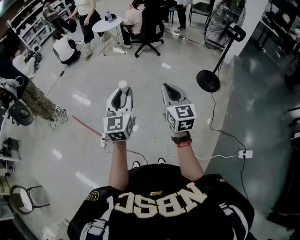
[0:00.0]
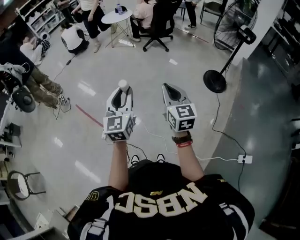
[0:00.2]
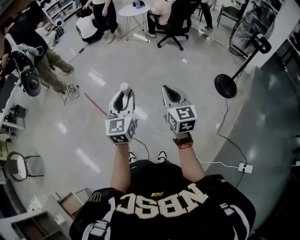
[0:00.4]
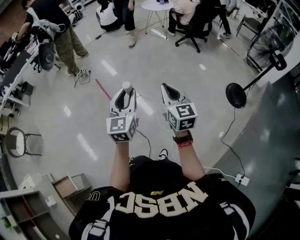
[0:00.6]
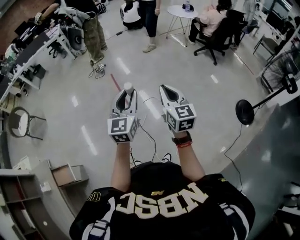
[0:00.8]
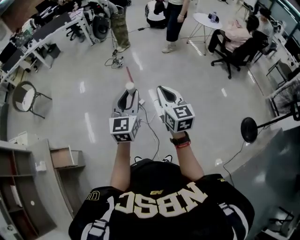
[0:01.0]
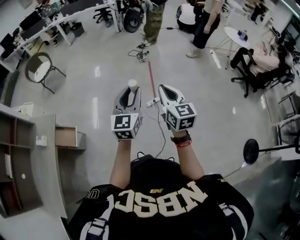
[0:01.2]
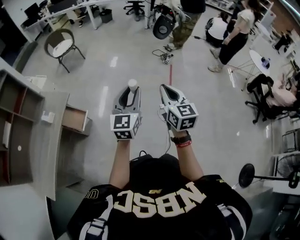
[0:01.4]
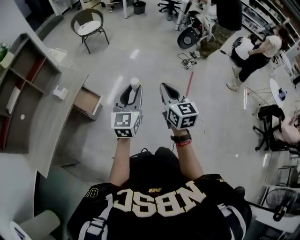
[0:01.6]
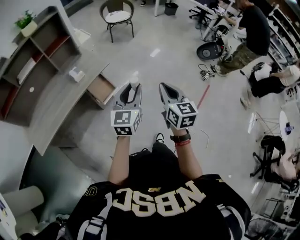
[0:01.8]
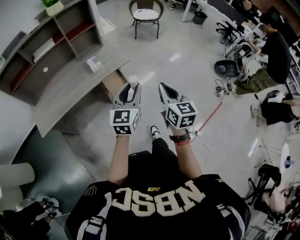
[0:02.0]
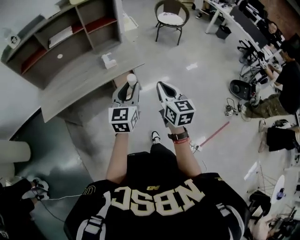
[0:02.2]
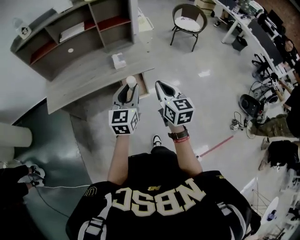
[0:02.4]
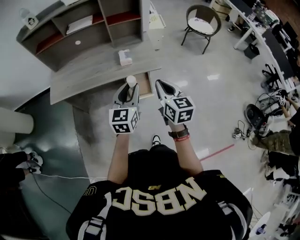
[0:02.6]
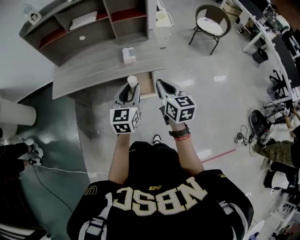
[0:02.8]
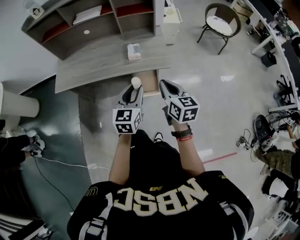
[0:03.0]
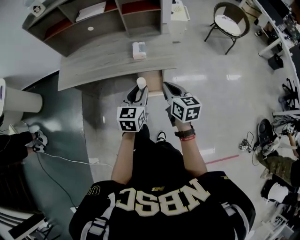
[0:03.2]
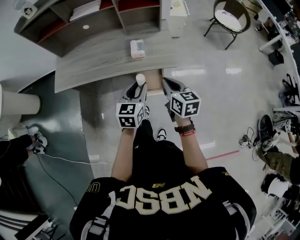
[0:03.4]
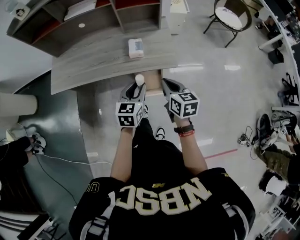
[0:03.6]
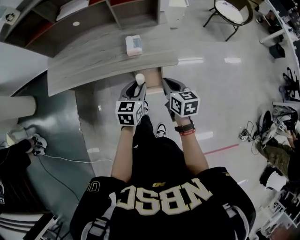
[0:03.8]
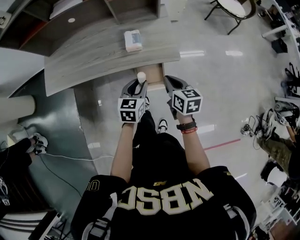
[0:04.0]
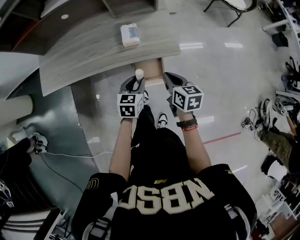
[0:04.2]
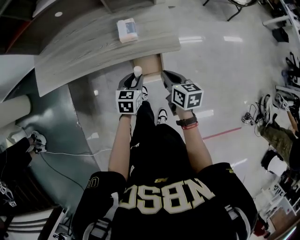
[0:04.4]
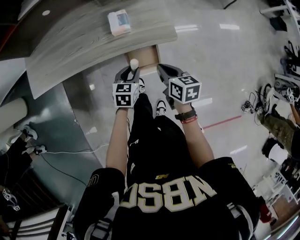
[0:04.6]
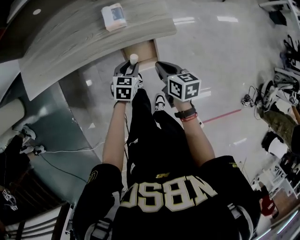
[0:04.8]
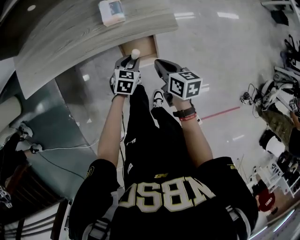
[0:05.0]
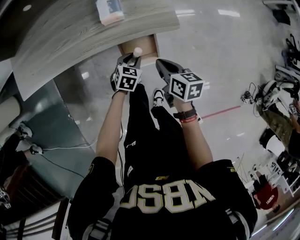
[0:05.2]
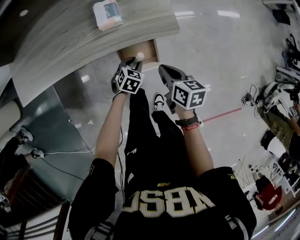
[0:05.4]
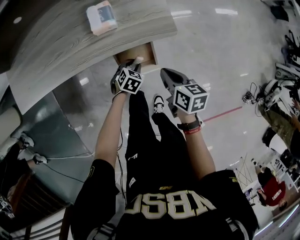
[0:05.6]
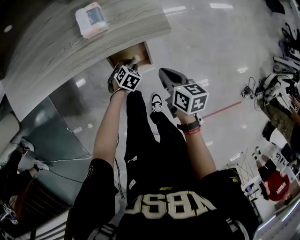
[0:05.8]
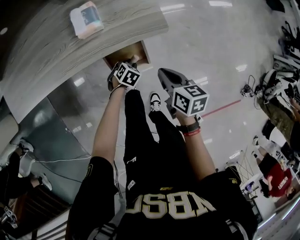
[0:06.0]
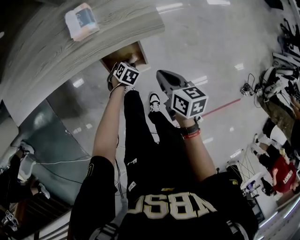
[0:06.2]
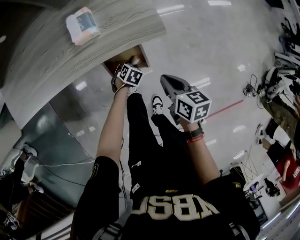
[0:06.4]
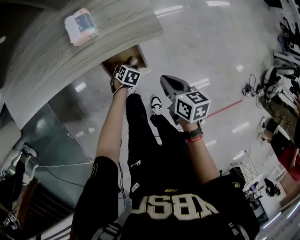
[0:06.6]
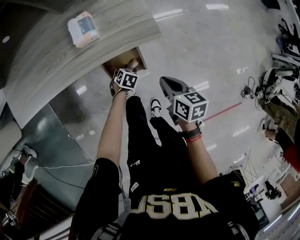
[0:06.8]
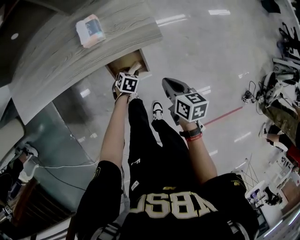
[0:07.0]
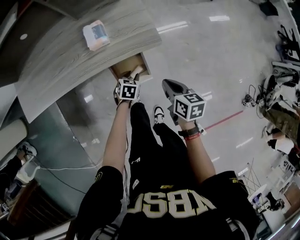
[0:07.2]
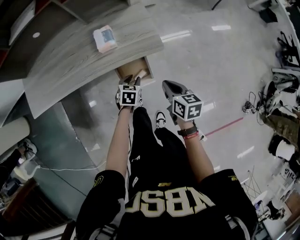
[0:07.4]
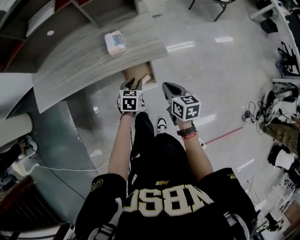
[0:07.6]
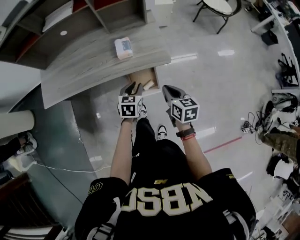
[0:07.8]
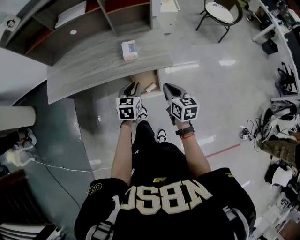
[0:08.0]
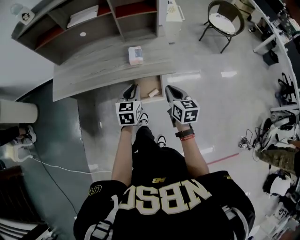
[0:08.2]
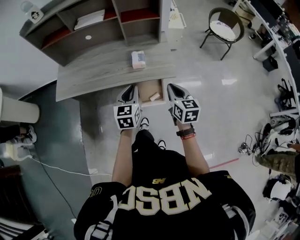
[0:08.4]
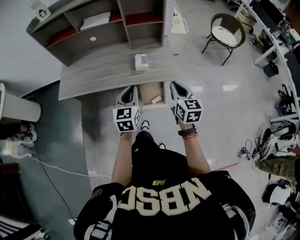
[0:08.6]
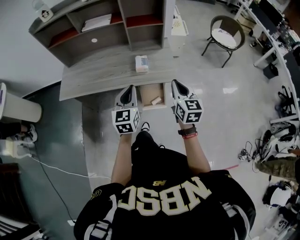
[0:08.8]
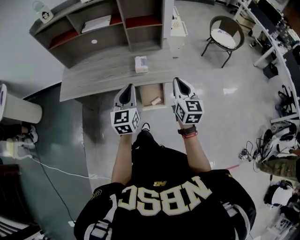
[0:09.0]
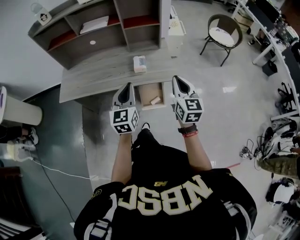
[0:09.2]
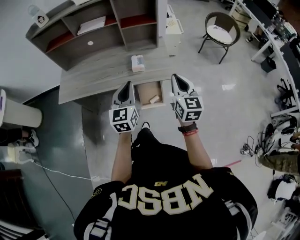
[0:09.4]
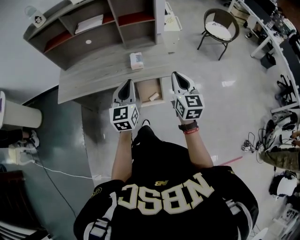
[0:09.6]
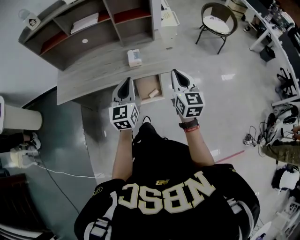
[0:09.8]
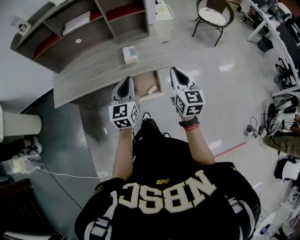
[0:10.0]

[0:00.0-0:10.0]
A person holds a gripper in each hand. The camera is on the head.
0:00.0 to 0:01.4: Both grippers are carried roughly 60 cm. The left gripper swivels approximately 60 degrees. Meanwhile the right gripper changes its angle by approximately 70 degrees.
0:01.4 to 0:02.8: Both grippers are carried about 50 cm. The left gripper changes its angle by about 70 degrees. Meanwhile the right gripper changes its angle by roughly 80 degrees.
0:02.8 to 0:04.2: The two grippers go about 20 cm downward and forward. The right gripper swivels about 20 degrees. The left gripper turns by some 30 degrees.
0:04.2 to 0:05.8: The left gripper shifts some 30 cm downward, and rotates approximately 40 degrees. Meanwhile the right gripper travels downward by about 15 cm.
0:05.8 to 0:07.2: The right gripper ends up some 5 cm from where it was, while the left gripper moves upward, roughly 5 cm.
0:07.2 to 0:08.6: The right gripper shifts about 25 cm upward, and changes its angle by some 40 degrees. Meanwhile the left gripper is displaced upward by about 40 cm, points its fingers about 40 degrees further upward, and closes its fingers.

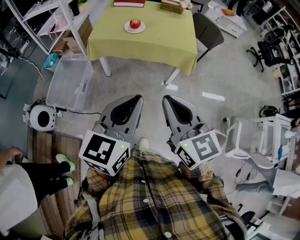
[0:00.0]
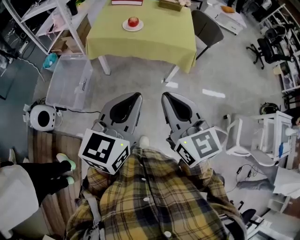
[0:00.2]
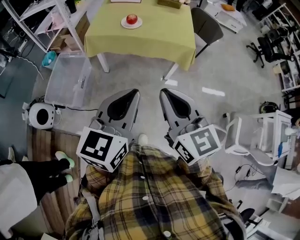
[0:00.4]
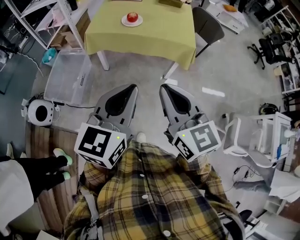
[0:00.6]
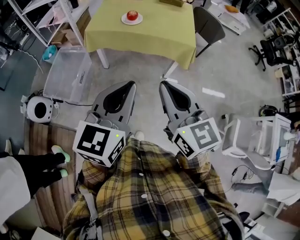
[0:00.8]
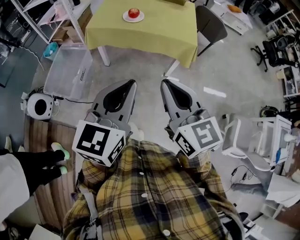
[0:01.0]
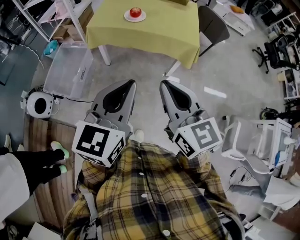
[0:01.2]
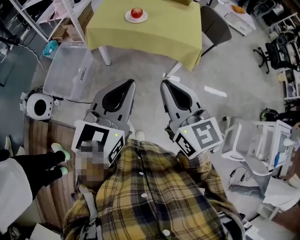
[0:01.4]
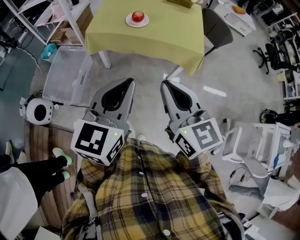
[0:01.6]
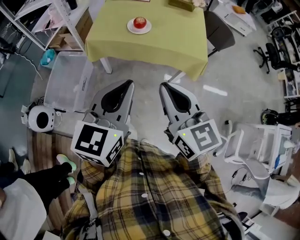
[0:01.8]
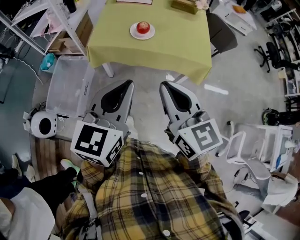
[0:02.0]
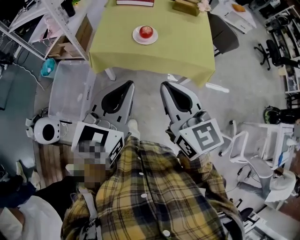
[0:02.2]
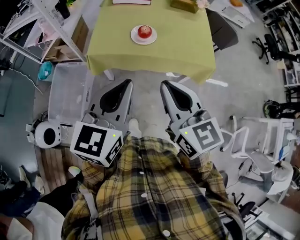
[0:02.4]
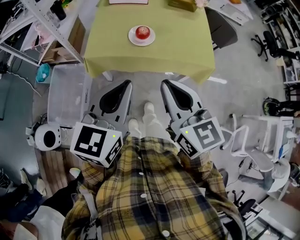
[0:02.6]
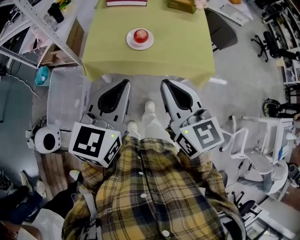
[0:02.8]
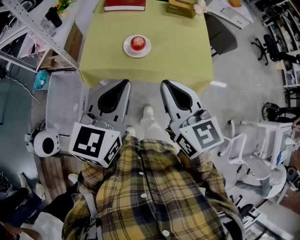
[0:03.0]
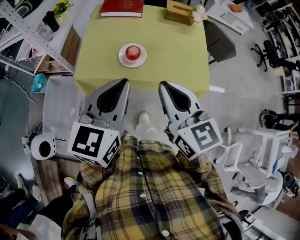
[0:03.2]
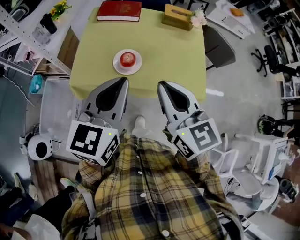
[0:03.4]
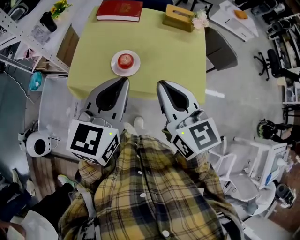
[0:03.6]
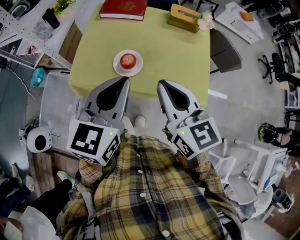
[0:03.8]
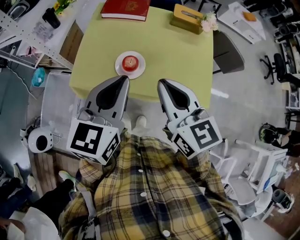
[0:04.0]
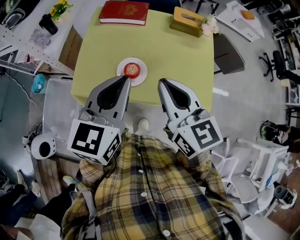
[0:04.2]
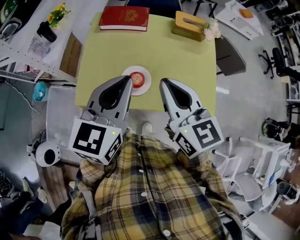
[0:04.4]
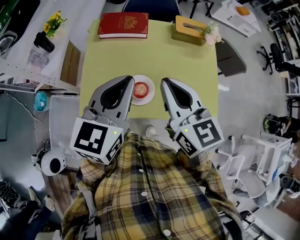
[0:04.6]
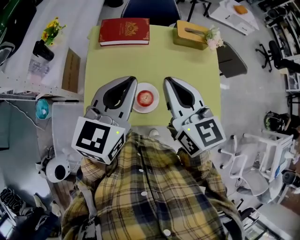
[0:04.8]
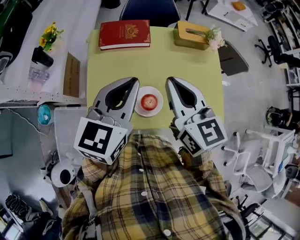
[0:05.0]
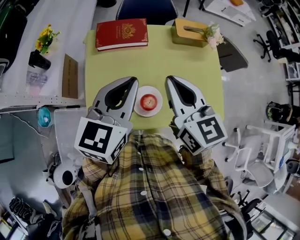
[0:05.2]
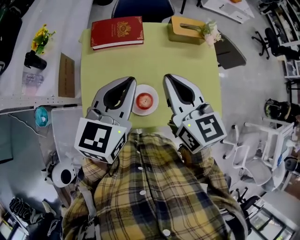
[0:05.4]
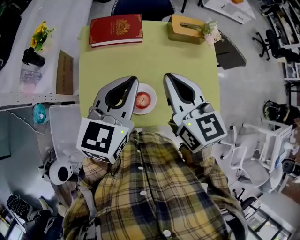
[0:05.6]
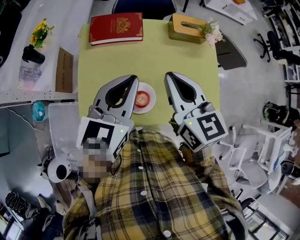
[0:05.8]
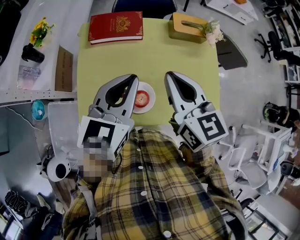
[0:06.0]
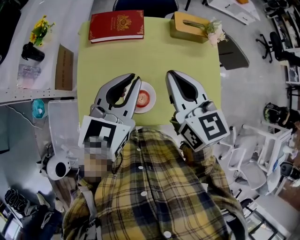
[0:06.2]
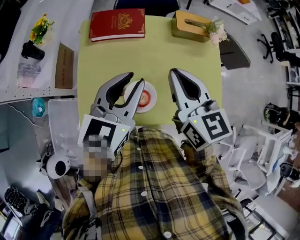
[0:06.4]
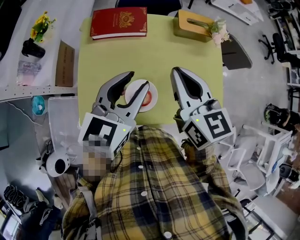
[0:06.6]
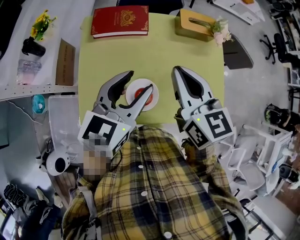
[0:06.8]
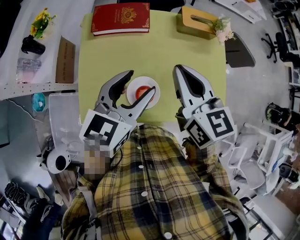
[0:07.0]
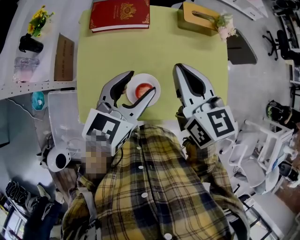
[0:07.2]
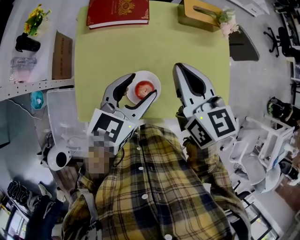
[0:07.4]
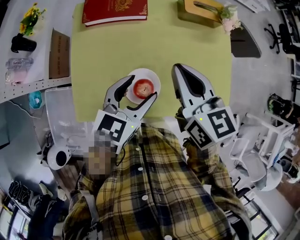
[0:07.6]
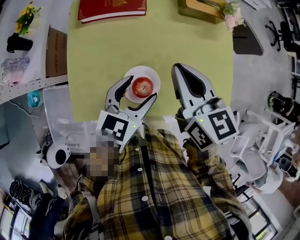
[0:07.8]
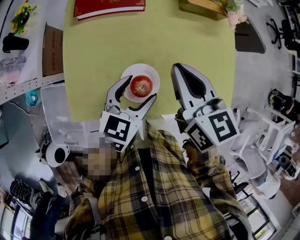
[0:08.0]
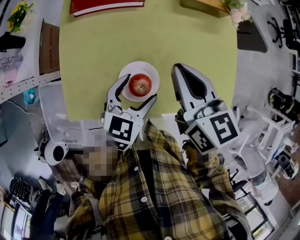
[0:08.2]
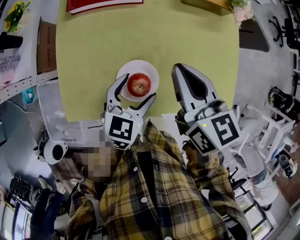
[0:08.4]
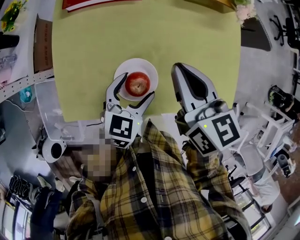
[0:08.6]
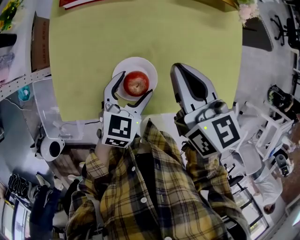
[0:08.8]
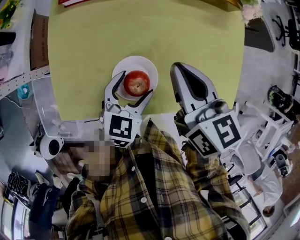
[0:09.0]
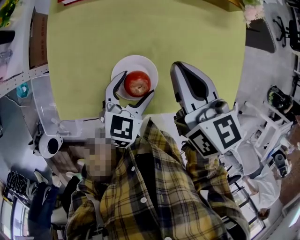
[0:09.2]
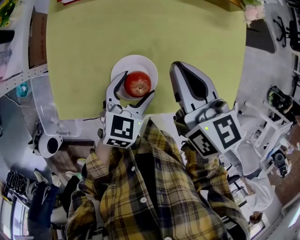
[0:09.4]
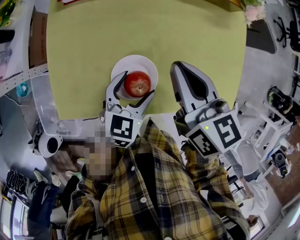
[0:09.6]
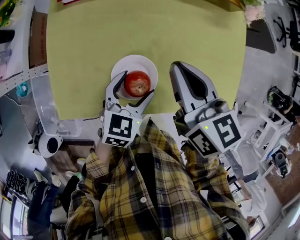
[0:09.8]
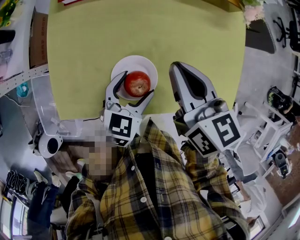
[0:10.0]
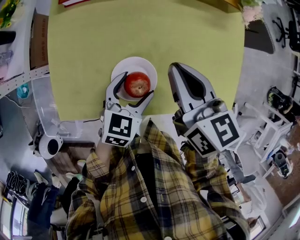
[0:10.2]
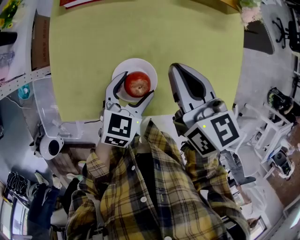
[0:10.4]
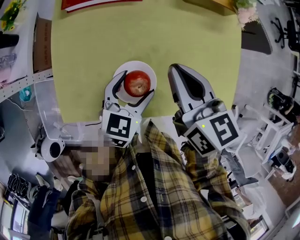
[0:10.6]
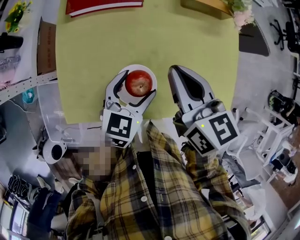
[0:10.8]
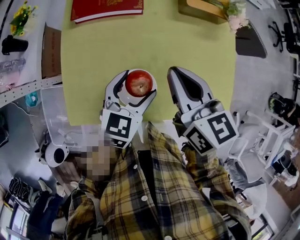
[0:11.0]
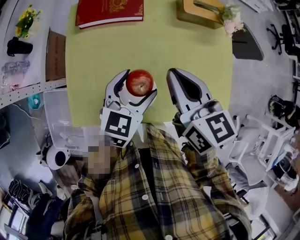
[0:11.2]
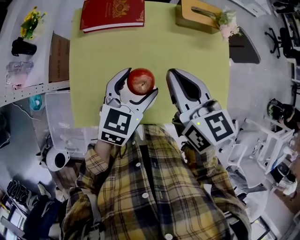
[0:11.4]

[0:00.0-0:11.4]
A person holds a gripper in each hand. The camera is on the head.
0:00.0 to 0:01.4: Both grippers travel together forward, some 5 cm.
0:01.4 to 0:02.8: Both grippers travel together forward and to the left, approximately 30 cm.
0:02.8 to 0:04.2: Both grippers move forward, some 25 cm.
0:04.2 to 0:05.6: Both grippers move forward, some 15 cm.
0:05.6 to 0:07.2: The left gripper heads downward, covering approximately 10 cm, and opens.
0:07.2 to 0:08.6: The left gripper heads downward, covering approximately 20 cm. Meanwhile the right gripper heads downward, covering approximately 10 cm.
0:08.6 to 0:10.0: The grippers make only small movements.
0:10.0 to 0:11.4: The left gripper travels upward and forward by some 15 cm, while the right gripper moves upward, roughly 10 cm.

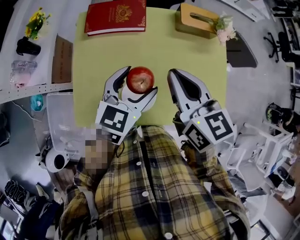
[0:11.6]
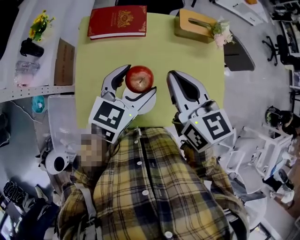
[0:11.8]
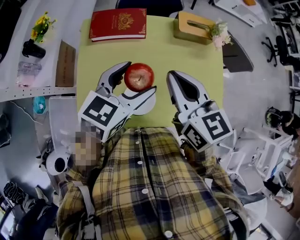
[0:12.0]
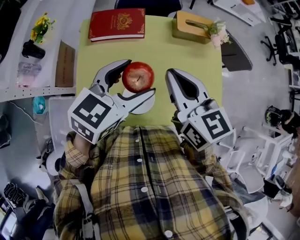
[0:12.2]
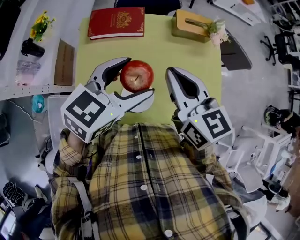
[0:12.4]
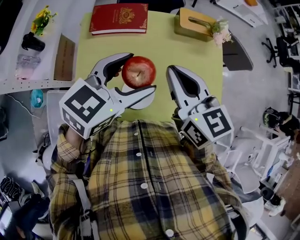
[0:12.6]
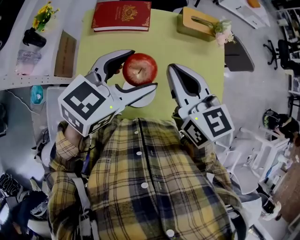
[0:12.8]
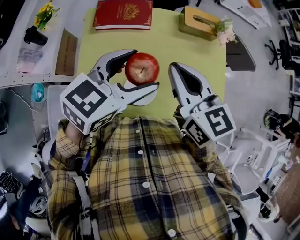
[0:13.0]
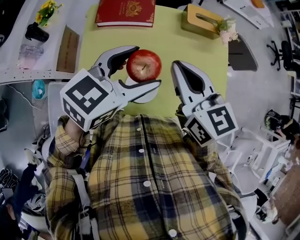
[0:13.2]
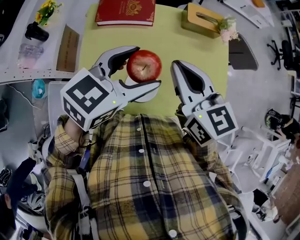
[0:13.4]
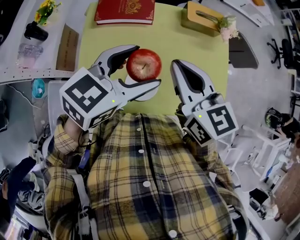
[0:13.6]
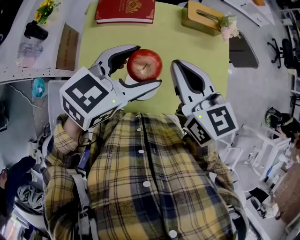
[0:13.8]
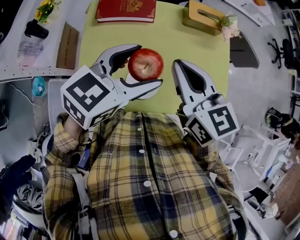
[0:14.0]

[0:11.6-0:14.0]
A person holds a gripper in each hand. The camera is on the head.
0:11.6 to 0:12.8: The left gripper heads upward, covering about 10 cm.
0:12.8 to 0:14.0: The grippers move only a little.
